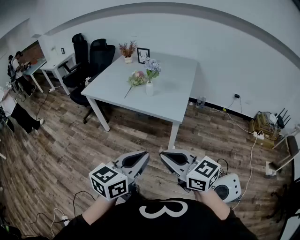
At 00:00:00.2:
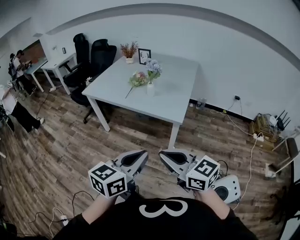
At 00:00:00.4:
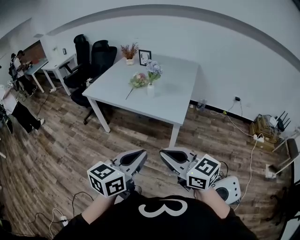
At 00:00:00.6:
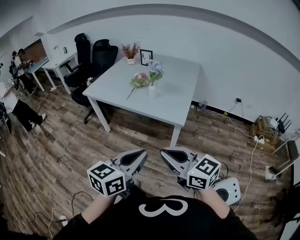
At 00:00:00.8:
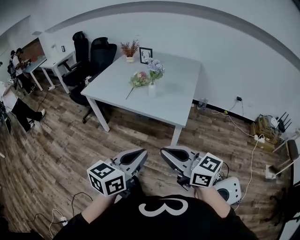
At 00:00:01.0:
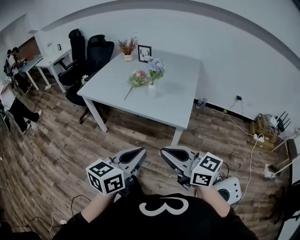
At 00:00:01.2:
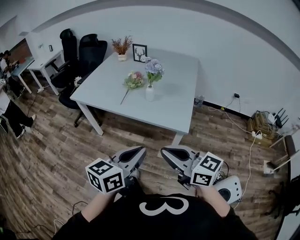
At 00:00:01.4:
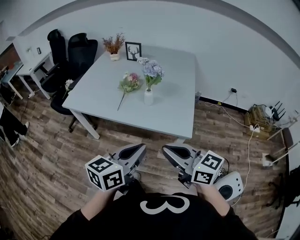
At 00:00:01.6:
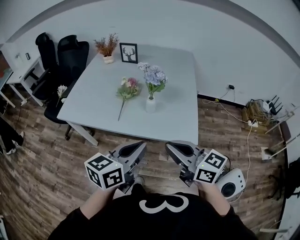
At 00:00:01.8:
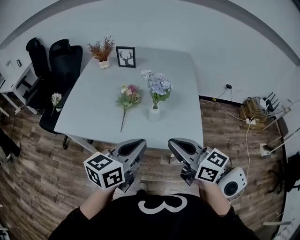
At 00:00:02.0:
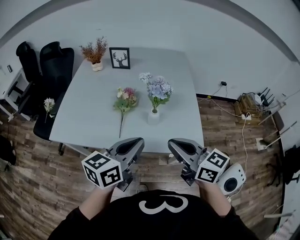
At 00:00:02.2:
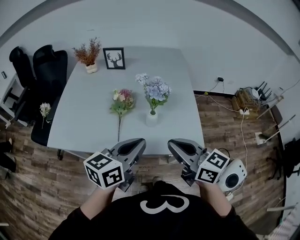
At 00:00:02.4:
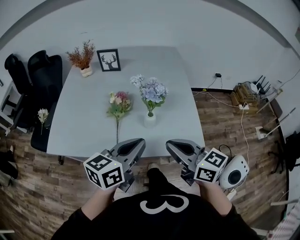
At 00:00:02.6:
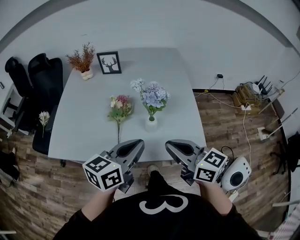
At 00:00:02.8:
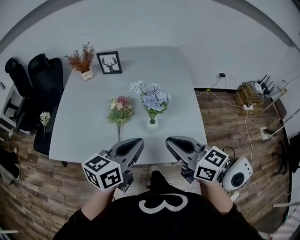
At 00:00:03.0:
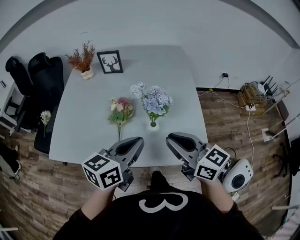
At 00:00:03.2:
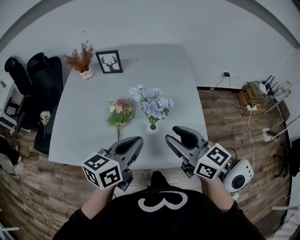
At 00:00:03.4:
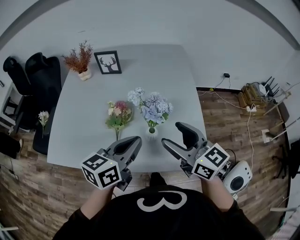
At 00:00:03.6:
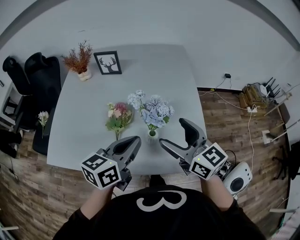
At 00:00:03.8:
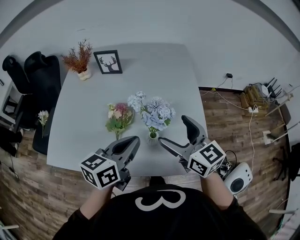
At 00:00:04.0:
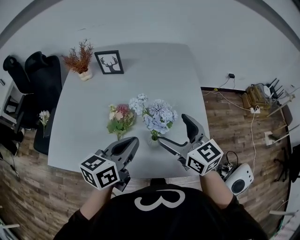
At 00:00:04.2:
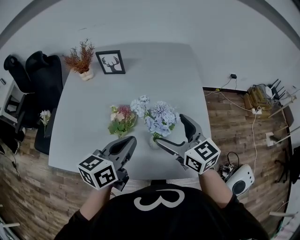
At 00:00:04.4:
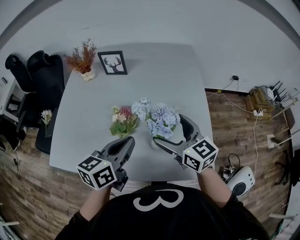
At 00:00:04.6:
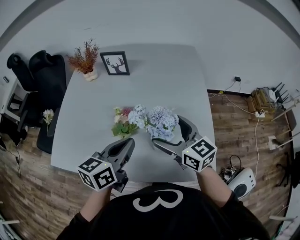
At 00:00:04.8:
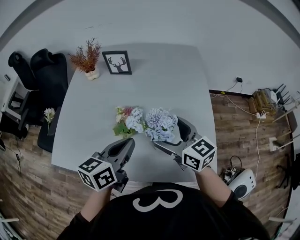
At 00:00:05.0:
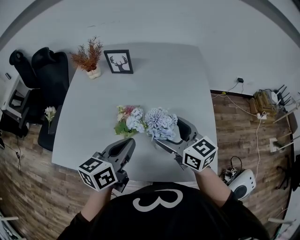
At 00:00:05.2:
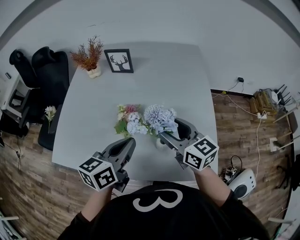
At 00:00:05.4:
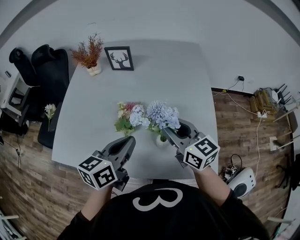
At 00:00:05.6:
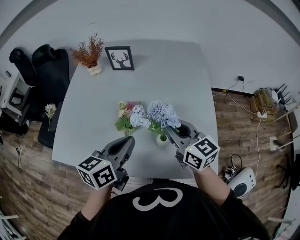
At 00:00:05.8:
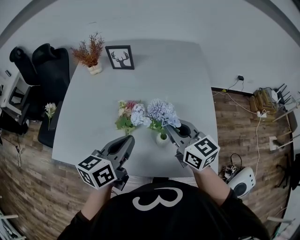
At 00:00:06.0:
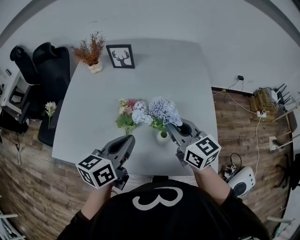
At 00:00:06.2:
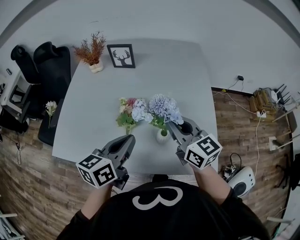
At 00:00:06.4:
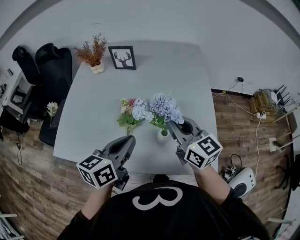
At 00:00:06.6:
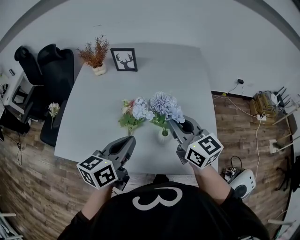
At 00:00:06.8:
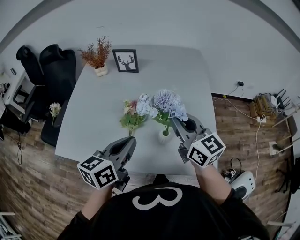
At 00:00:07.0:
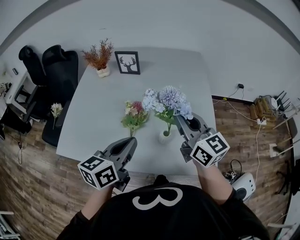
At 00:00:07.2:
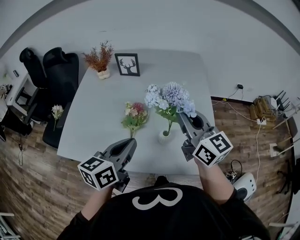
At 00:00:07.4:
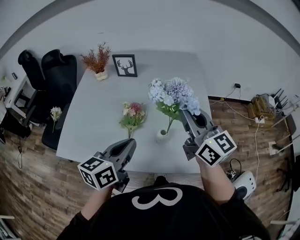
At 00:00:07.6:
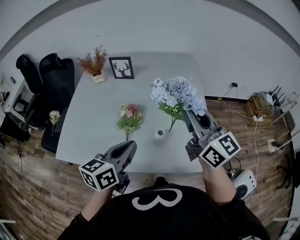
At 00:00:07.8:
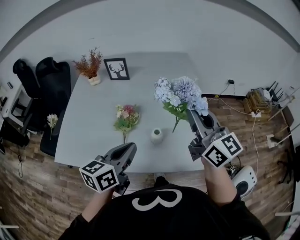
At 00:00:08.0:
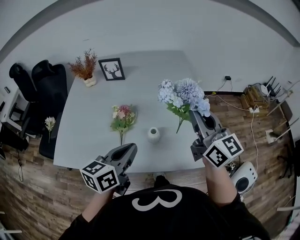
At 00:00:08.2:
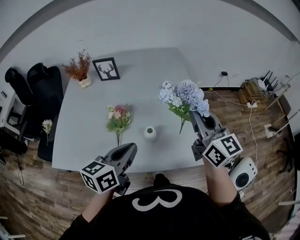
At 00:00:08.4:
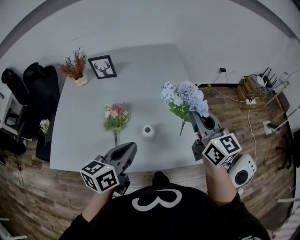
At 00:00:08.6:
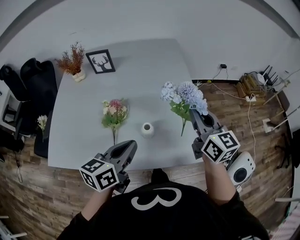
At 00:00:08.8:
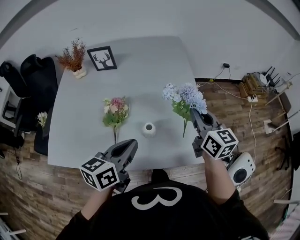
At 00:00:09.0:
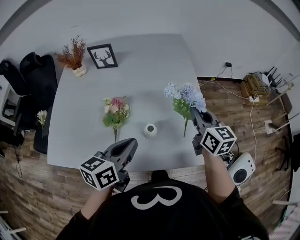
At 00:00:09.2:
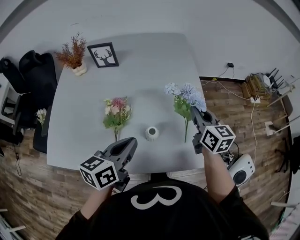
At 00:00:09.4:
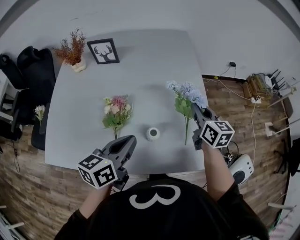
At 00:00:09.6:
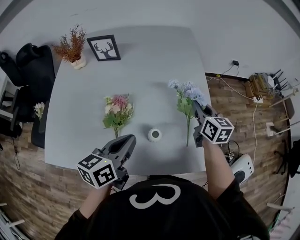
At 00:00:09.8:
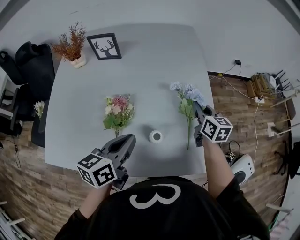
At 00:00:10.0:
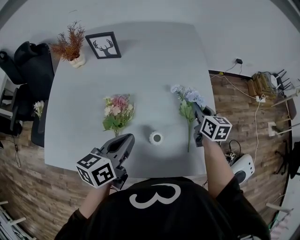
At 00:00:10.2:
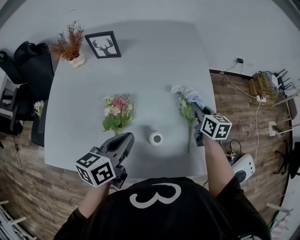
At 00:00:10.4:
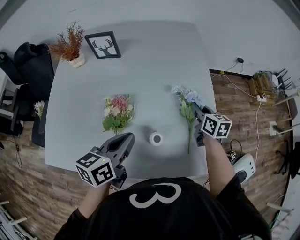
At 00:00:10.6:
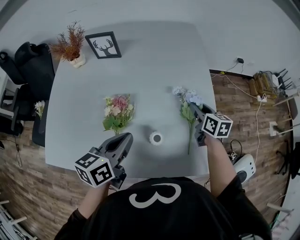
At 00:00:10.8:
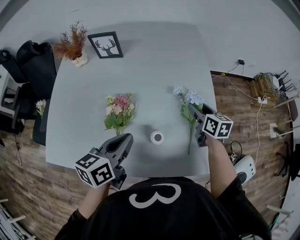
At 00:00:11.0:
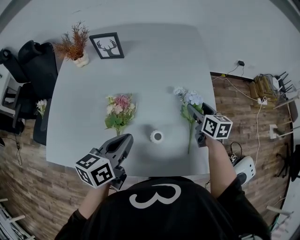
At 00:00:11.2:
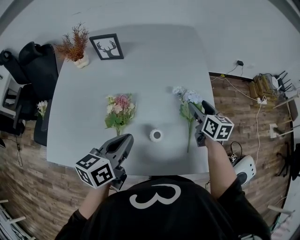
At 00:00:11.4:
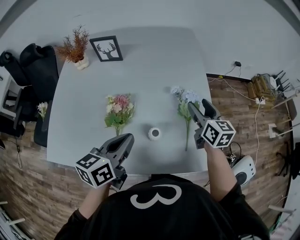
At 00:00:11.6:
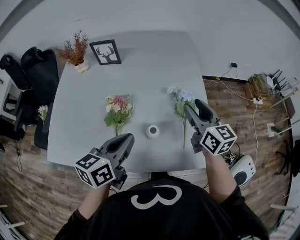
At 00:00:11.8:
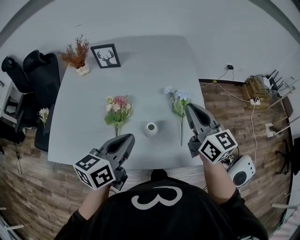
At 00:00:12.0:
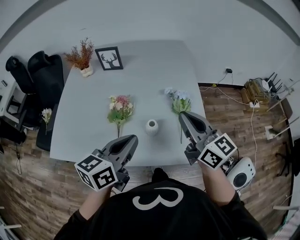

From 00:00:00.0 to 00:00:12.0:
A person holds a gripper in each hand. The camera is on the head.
From 00:00:00.0 to 00:00:01.6: Both grippers travel together forward, about 30 cm.
From 00:00:01.6 to 00:00:03.0: Both grippers travel together forward, about 20 cm.
From 00:00:03.0 to 00:00:04.4: The left gripper heads forward, covering roughly 10 cm, while the right gripper heads forward, covering about 15 cm, and opens its fingers.
From 00:00:04.4 to 00:00:06.0: The right gripper closes.
From 00:00:06.0 to 00:00:07.6: The right gripper shifts approximately 15 cm upward and to the right, and changes its angle by approximately 20 degrees. Meanwhile the left gripper travels backward by approximately 5 cm.
From 00:00:07.6 to 00:00:09.0: The left gripper moves some 5 cm. Meanwhile the right gripper is displaced downward, to the right and forward by about 20 cm, and turns by some 30 degrees.
From 00:00:09.0 to 00:00:10.4: The left gripper heads forward, covering roughly 5 cm. Meanwhile the right gripper moves downward and forward, approximately 15 cm.
From 00:00:10.4 to 00:00:12.0: The right gripper travels upward and backward by roughly 30 cm, tips its fingers upward by some 30 degrees, and opens and closes again. The left gripper goes approximately 15 cm backward and upward.

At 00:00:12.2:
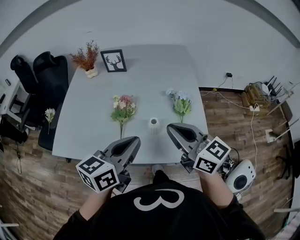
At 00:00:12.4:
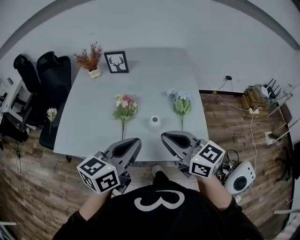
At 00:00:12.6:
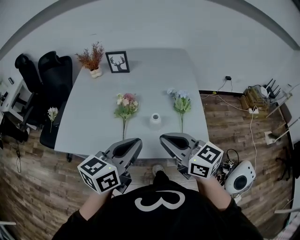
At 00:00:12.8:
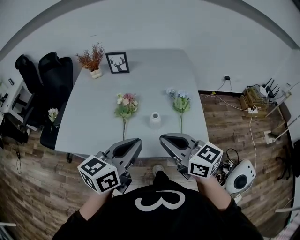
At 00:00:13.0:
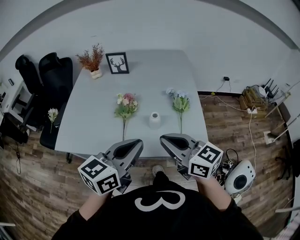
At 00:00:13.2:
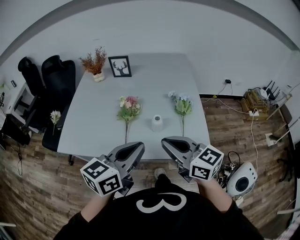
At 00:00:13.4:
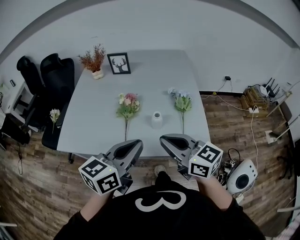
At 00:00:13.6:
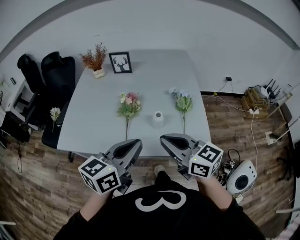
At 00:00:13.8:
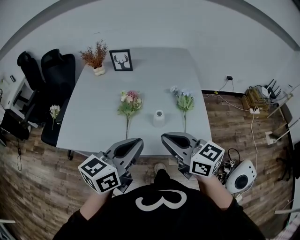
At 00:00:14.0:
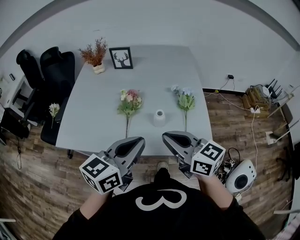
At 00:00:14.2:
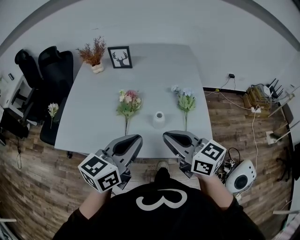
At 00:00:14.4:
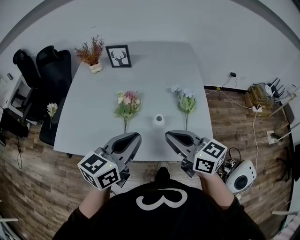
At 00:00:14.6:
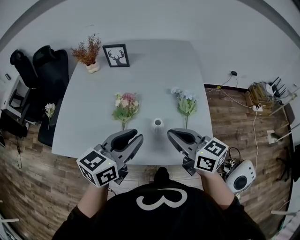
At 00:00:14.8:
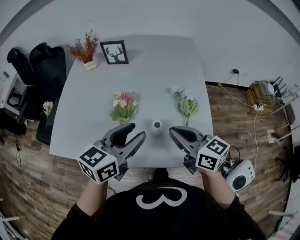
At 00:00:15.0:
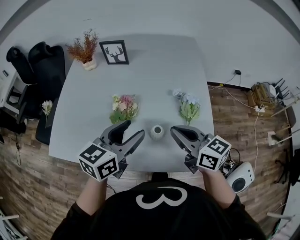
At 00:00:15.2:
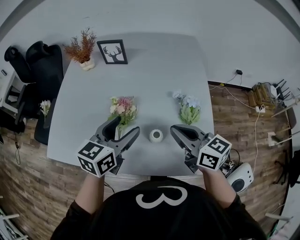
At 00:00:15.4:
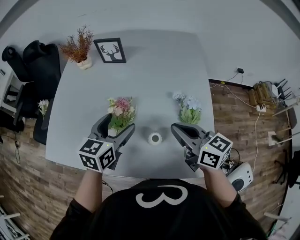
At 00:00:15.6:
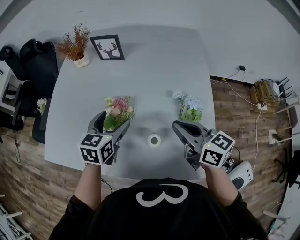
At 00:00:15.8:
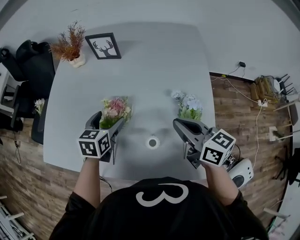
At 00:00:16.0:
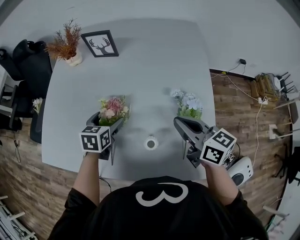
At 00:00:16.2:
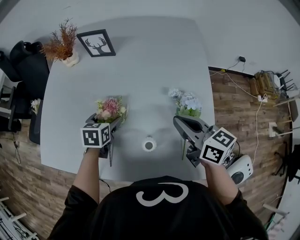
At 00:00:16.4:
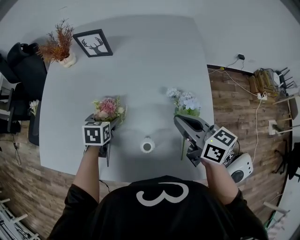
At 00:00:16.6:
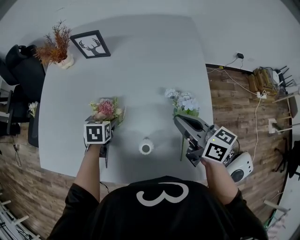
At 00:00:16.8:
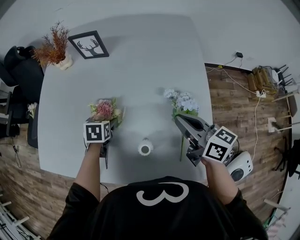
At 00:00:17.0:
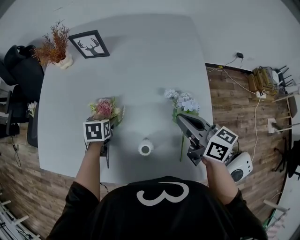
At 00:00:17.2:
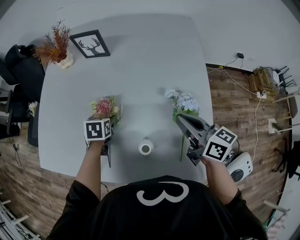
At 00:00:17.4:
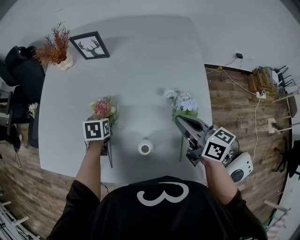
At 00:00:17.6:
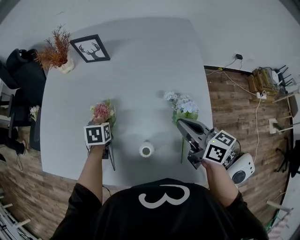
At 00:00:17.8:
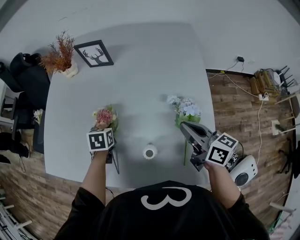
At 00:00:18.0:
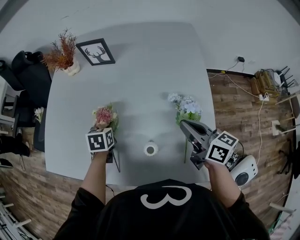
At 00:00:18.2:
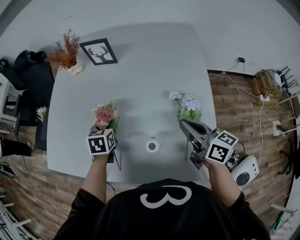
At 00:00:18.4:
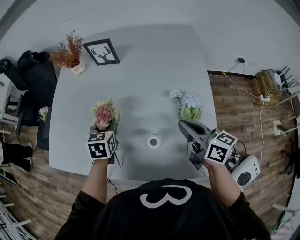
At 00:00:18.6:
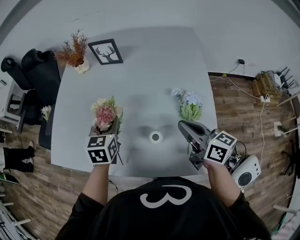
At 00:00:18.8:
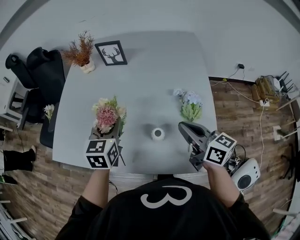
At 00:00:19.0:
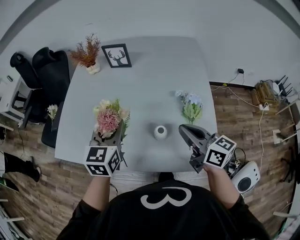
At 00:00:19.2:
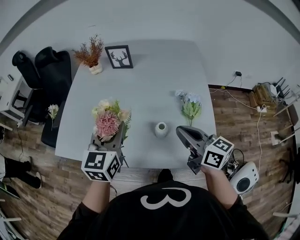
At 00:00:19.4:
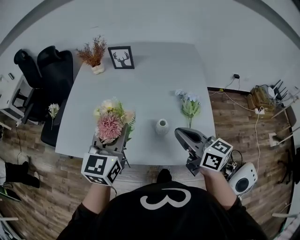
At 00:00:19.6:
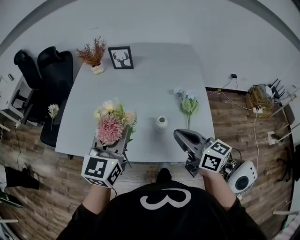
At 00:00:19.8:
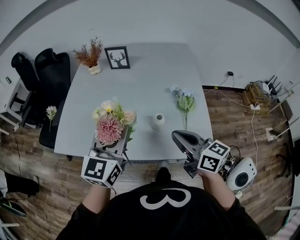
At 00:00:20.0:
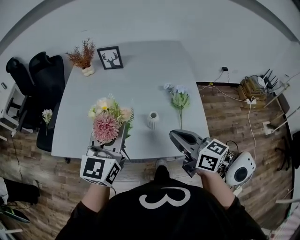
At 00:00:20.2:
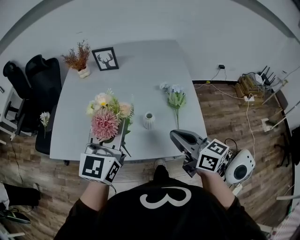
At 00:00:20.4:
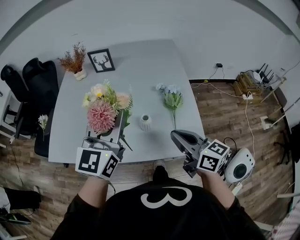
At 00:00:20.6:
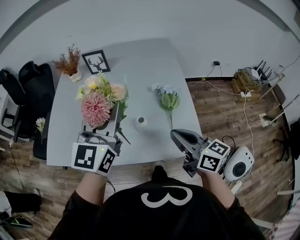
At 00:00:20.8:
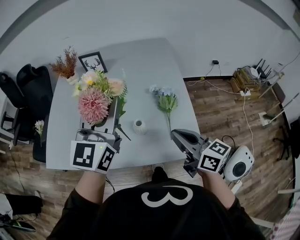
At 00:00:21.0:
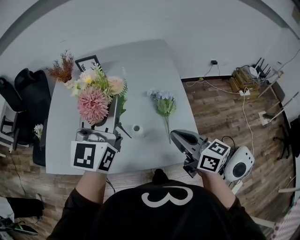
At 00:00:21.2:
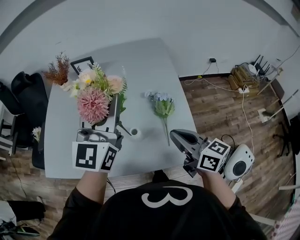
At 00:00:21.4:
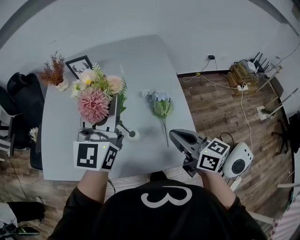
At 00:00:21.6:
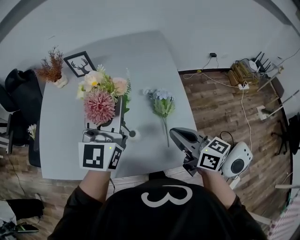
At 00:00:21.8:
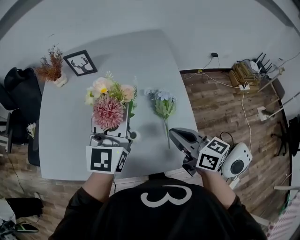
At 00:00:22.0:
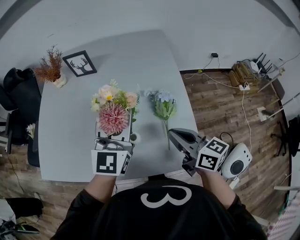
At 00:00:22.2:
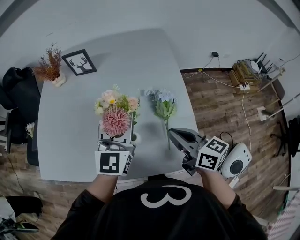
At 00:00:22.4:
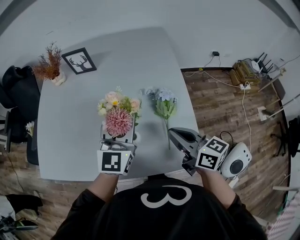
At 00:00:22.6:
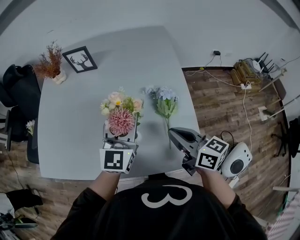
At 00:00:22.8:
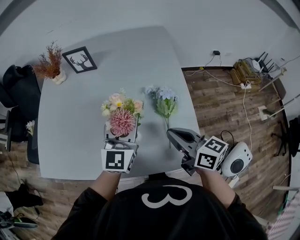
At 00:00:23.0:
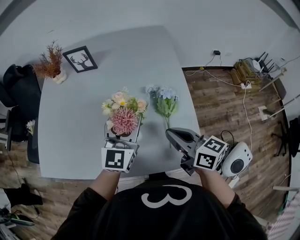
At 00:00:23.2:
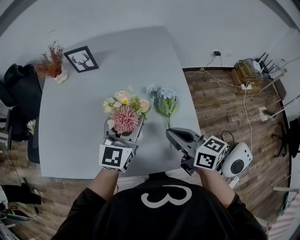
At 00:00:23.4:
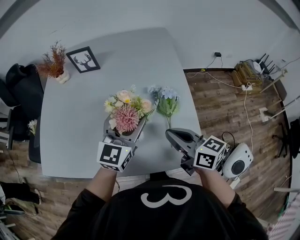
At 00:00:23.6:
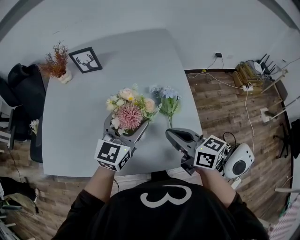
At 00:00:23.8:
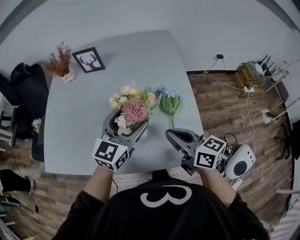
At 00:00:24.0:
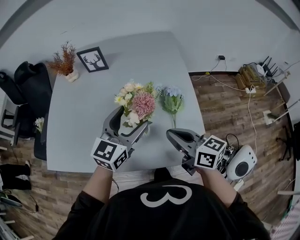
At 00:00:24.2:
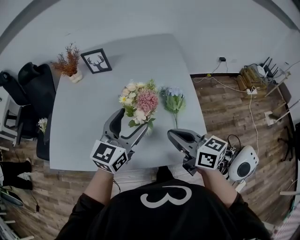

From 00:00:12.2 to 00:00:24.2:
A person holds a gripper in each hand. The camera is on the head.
From 00:00:12.2 to 00:00:13.8: The two grippers go some 5 cm backward.
From 00:00:13.8 to 00:00:15.2: The grippers both shift forward by approximately 20 cm. The left gripper opens up.
From 00:00:15.2 to 00:00:16.6: The right gripper shifts roughly 10 cm to the right and forward, while the left gripper is displaced downward and forward by approximately 25 cm, and angles its fingers downward, by roughly 40 degrees.
From 00:00:16.6 to 00:00:18.2: The left gripper is displaced upward by approximately 5 cm, and closes up.
From 00:00:18.2 to 00:00:19.8: The left gripper heads upward and backward, covering about 35 cm, and angles its fingers upward, by about 50 degrees. Meanwhile the right gripper is displaced backward, to the left and upward by about 20 cm.
From 00:00:19.8 to 00:00:21.2: The right gripper goes about 10 cm to the right. The left gripper is displaced to the right, forward and upward by about 20 cm.
From 00:00:21.2 to 00:00:22.6: The right gripper ends up approximately 5 cm from where it was; the left gripper travels downward by about 15 cm.
From 00:00:22.6 to 00:00:24.2: The left gripper shifts roughly 5 cm backward, and opens up. The right gripper goes about 5 cm to the left.
